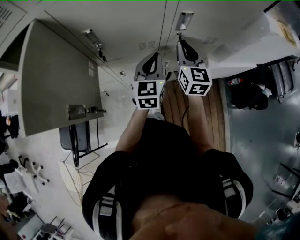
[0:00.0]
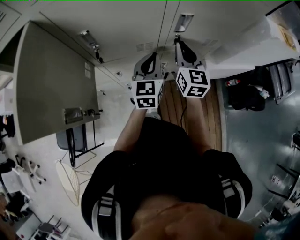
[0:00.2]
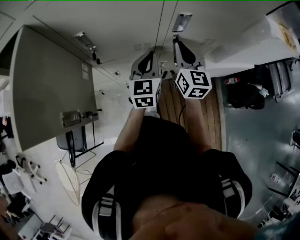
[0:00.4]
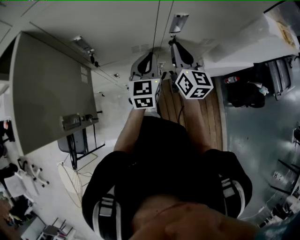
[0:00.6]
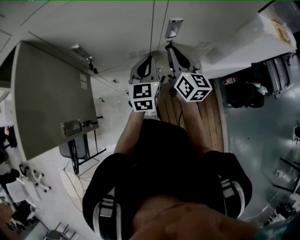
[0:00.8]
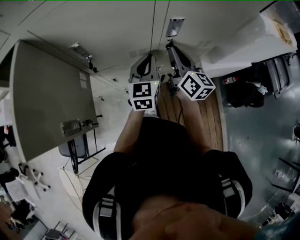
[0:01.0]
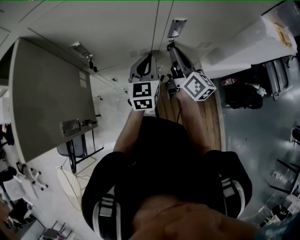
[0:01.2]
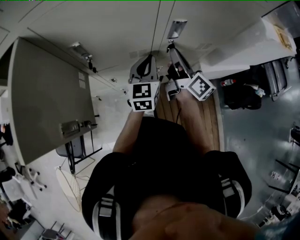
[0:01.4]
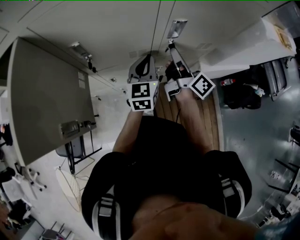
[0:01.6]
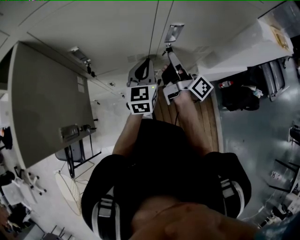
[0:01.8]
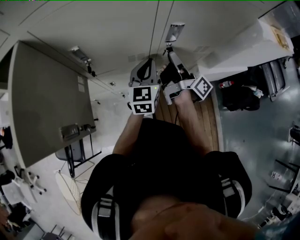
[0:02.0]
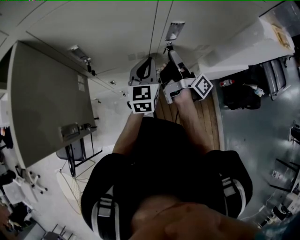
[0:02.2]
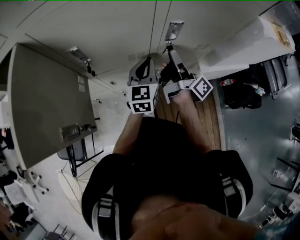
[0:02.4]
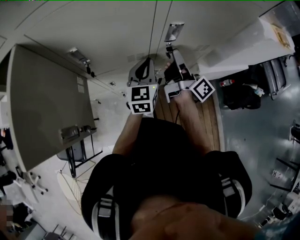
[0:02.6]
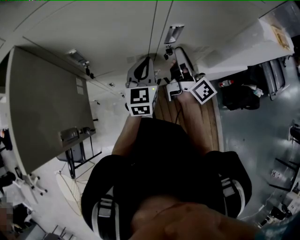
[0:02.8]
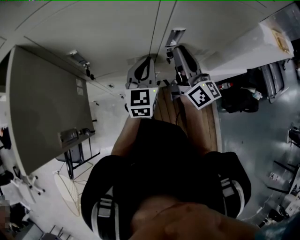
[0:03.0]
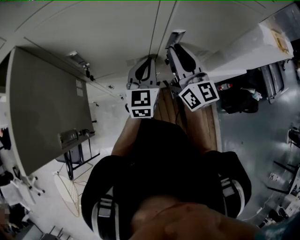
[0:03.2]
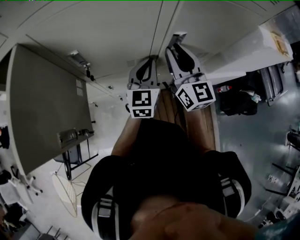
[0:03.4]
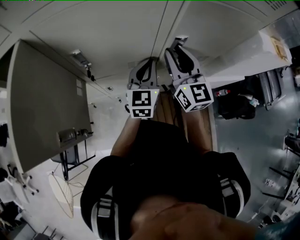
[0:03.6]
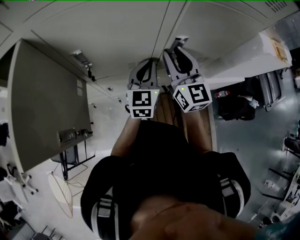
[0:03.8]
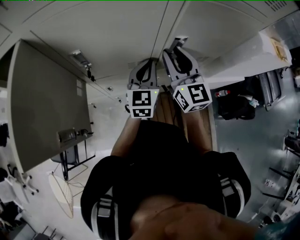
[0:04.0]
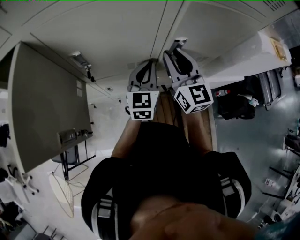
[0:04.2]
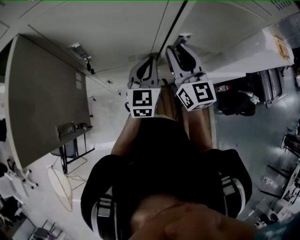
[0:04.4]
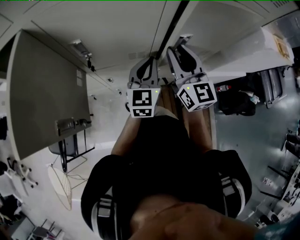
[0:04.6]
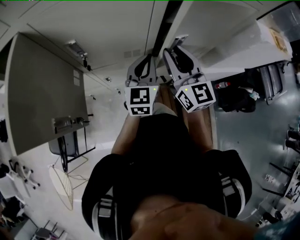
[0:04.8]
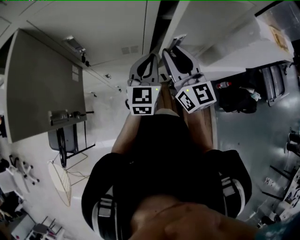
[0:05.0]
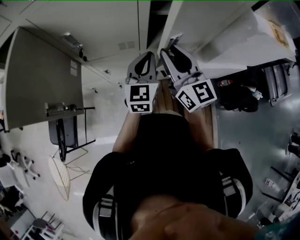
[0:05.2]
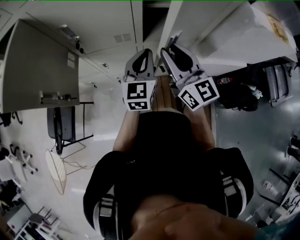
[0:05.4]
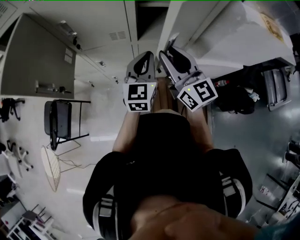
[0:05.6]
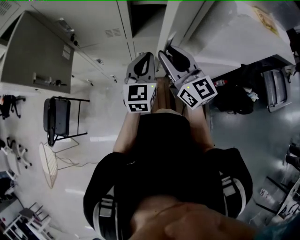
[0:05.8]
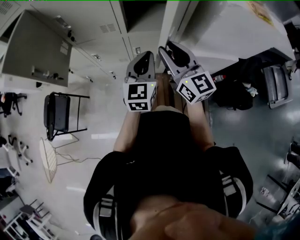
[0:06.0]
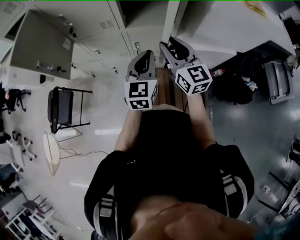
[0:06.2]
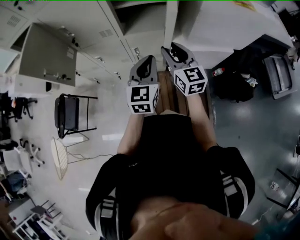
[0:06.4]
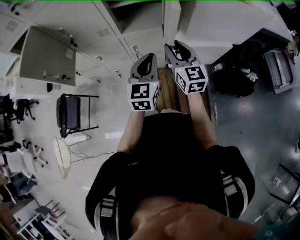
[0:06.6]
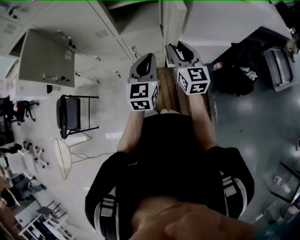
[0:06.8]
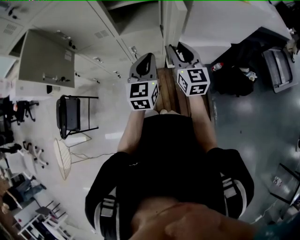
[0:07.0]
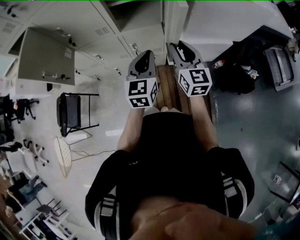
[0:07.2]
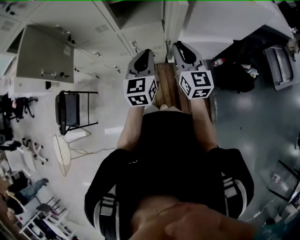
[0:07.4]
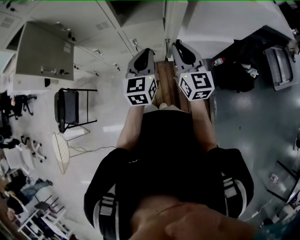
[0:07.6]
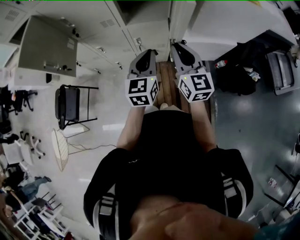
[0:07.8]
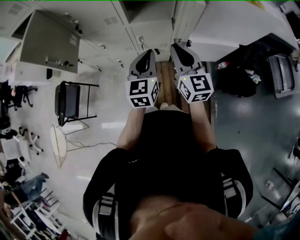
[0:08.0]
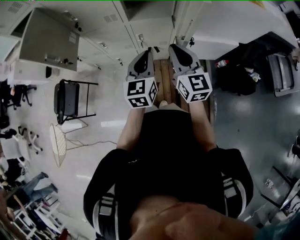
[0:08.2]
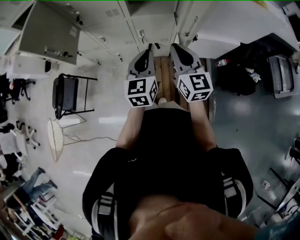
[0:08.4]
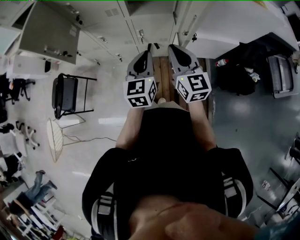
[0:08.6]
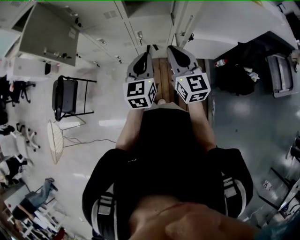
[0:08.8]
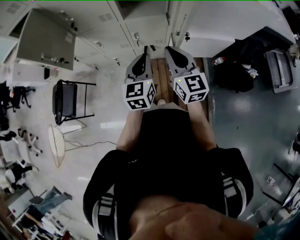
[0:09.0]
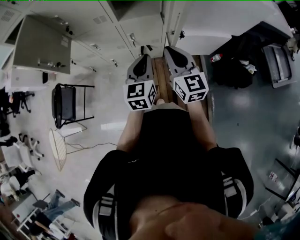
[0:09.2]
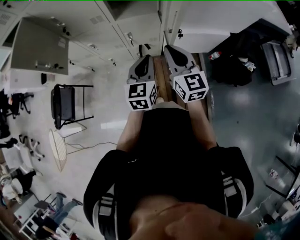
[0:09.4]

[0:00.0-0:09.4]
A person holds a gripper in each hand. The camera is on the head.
0.0 to 1.6 s: The right gripper rotates around the line of its fingers by about 60 degrees, clockwise from behind.
1.6 to 3.2 s: The right gripper shifts roughly 10 cm upward, and rolls counterclockwise, seen from behind, by about 50 degrees.
3.2 to 4.8 s: The grippers make only small movements.
4.8 to 6.2 s: Both grippers move backward and to the right, about 25 cm.
6.2 to 7.8 s: The right gripper is displaced backward by approximately 5 cm, and closes its fingers.
7.8 to 9.4 s: The left gripper changes place by about 5 cm.

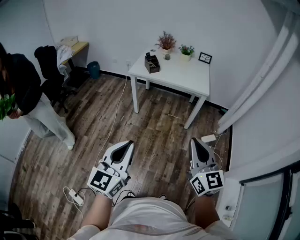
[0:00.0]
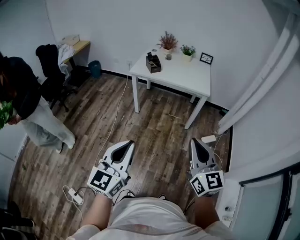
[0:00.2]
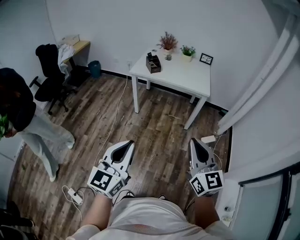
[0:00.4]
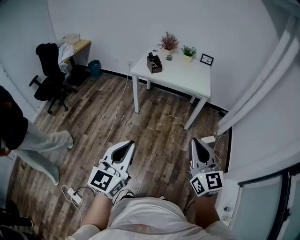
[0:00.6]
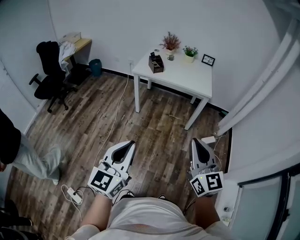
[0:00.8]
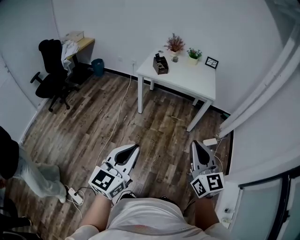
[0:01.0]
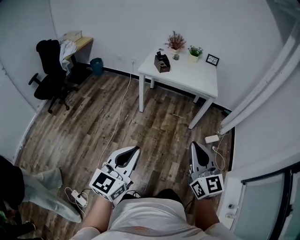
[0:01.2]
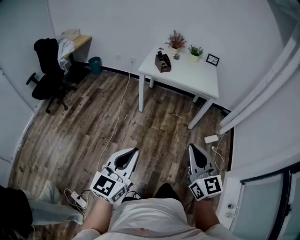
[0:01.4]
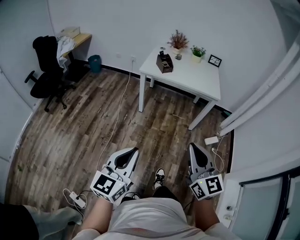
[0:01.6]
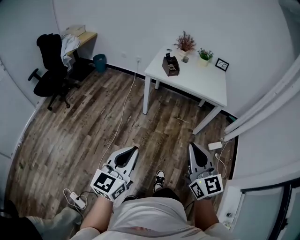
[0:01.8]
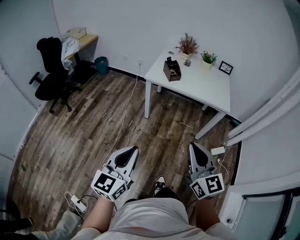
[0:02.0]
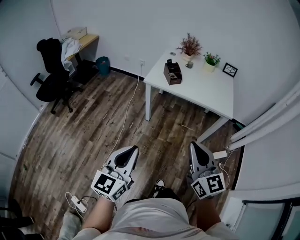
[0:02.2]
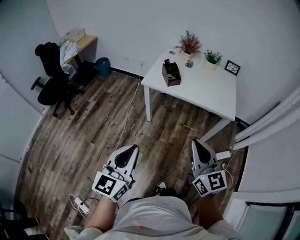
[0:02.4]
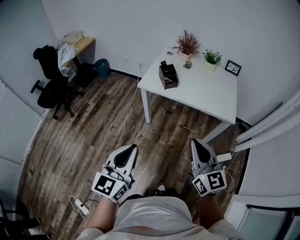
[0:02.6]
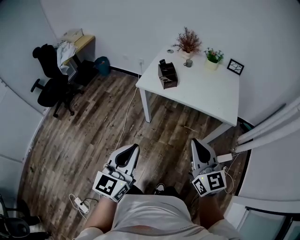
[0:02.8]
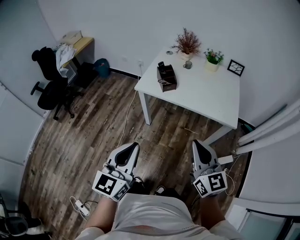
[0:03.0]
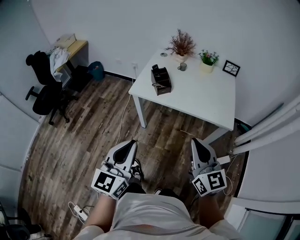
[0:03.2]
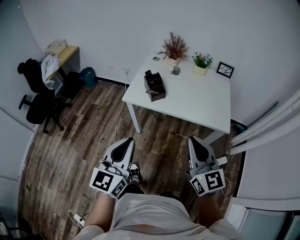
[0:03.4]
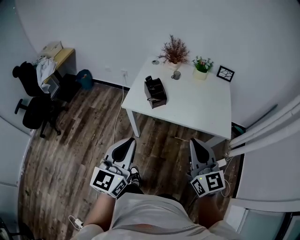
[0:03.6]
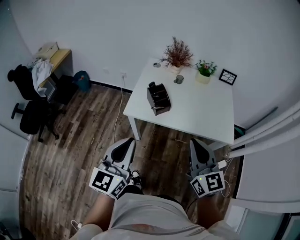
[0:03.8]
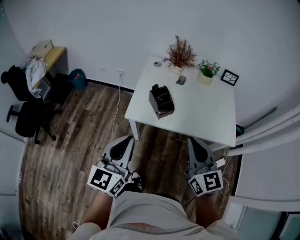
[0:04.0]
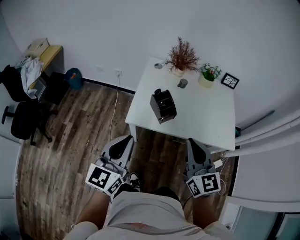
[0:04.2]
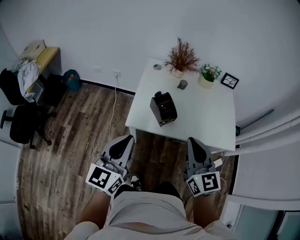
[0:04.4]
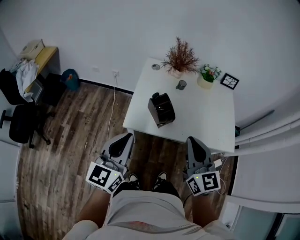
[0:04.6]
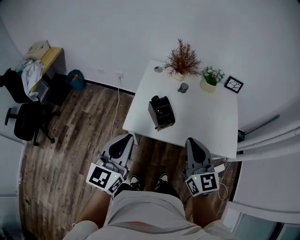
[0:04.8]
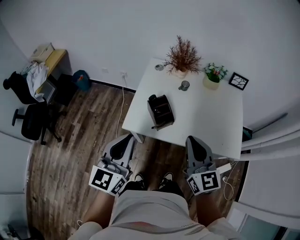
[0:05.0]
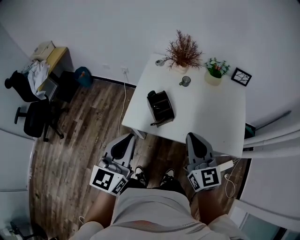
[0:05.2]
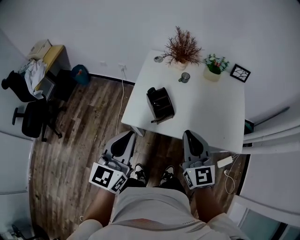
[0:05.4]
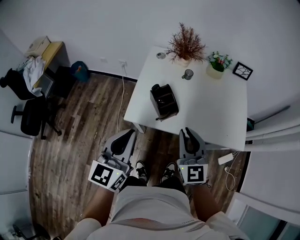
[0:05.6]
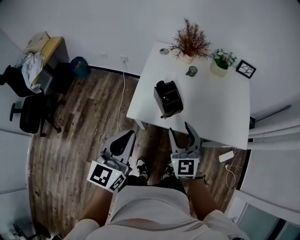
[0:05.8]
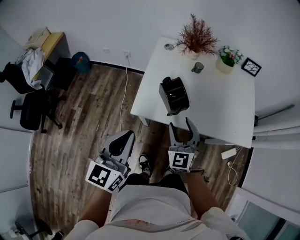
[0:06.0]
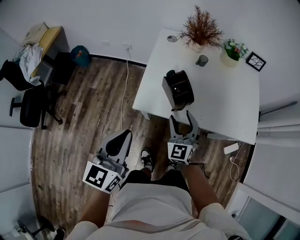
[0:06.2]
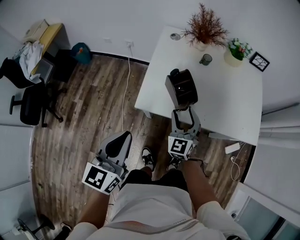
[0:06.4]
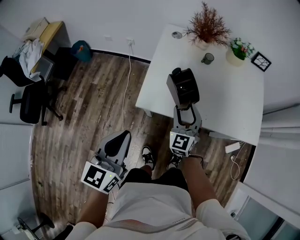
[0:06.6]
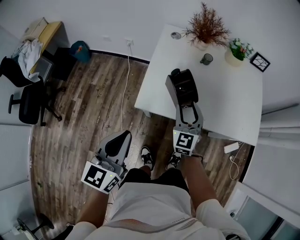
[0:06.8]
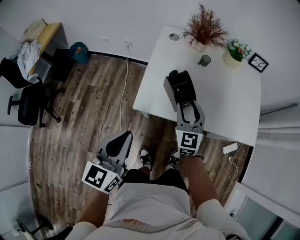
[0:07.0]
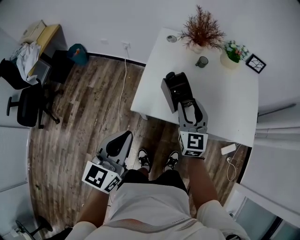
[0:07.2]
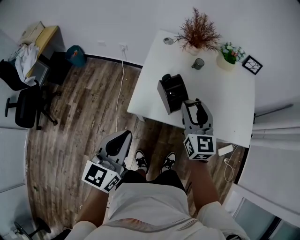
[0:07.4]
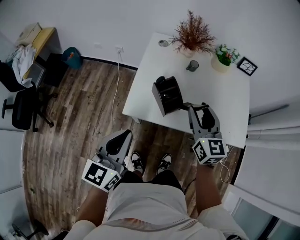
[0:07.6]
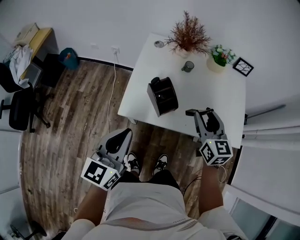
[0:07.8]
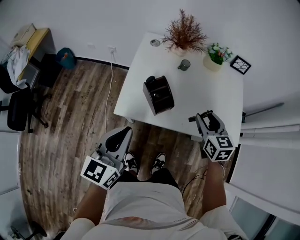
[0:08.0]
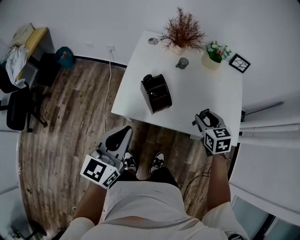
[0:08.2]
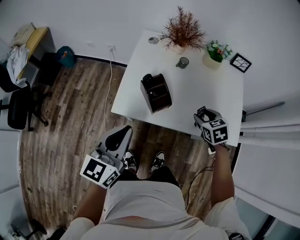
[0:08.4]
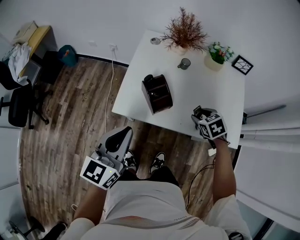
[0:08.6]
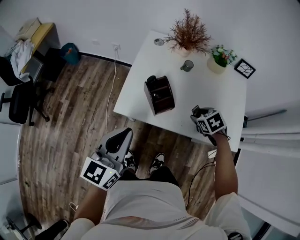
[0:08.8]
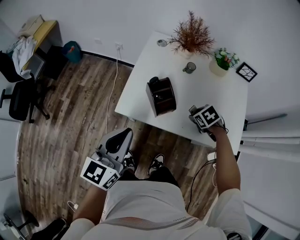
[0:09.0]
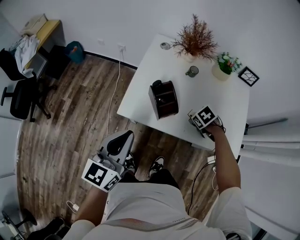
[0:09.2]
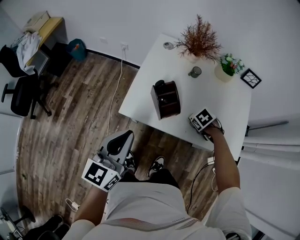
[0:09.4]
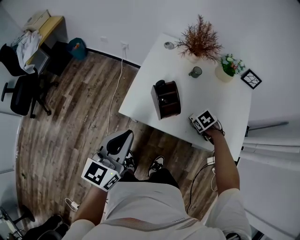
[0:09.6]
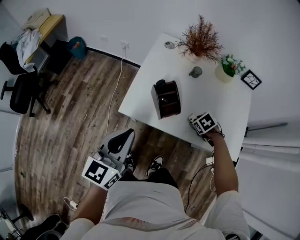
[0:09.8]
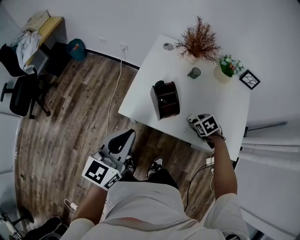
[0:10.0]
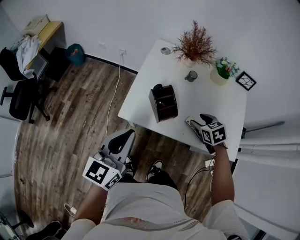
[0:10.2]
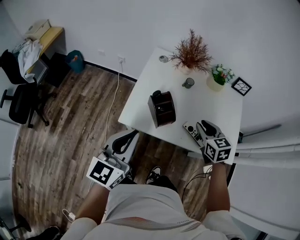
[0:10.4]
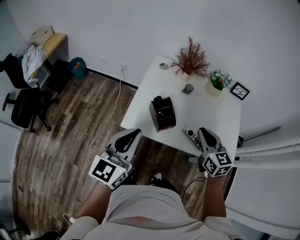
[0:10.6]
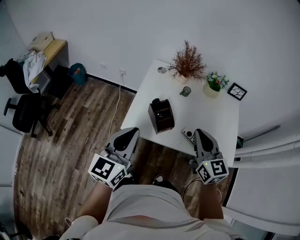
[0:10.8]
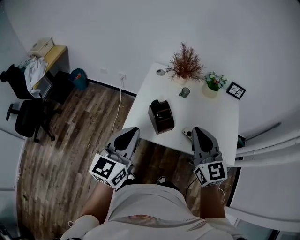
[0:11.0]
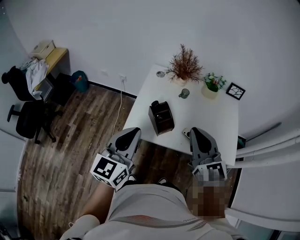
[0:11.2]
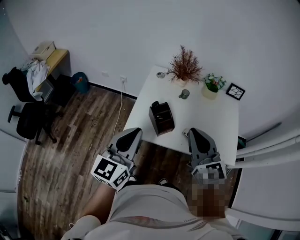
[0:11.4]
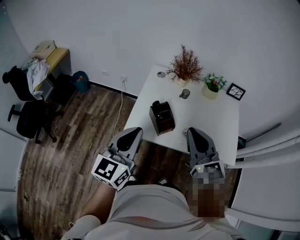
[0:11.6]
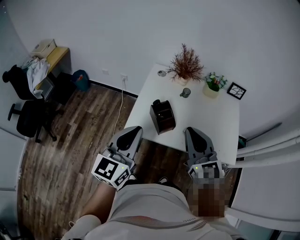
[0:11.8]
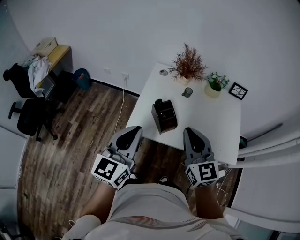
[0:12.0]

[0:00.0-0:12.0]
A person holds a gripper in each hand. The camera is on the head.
0.0 to 1.6 s: Both grippers move to the left, approximately 15 cm.
1.6 to 3.0 s: Both grippers move forward, about 30 cm.
3.0 to 4.4 s: The two grippers go some 30 cm forward and to the left.
4.4 to 6.0 s: The left gripper moves roughly 10 cm to the right and comes back, while the right gripper travels downward and forward by approximately 20 cm, rotates some 20 degrees, and opens.
6.0 to 7.6 s: The right gripper heads upward, to the right and forward, covering roughly 10 cm, and swivels approximately 30 degrees.
7.6 to 9.0 s: The right gripper heads downward, covering approximately 20 cm, and tilts its fingers some 70 degrees downward.
9.0 to 10.4 s: The right gripper travels upward by roughly 15 cm, angles its fingers upward, by roughly 40 degrees, and closes up.
10.4 to 12.0 s: The left gripper shifts some 5 cm upward, while the right gripper shifts about 20 cm upward, to the left and backward, tilts its fingers roughly 30 degrees upward, and closes.

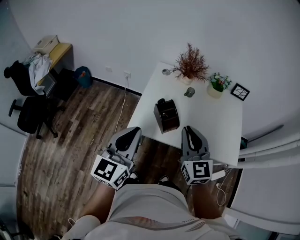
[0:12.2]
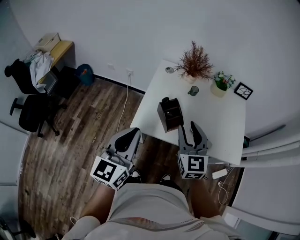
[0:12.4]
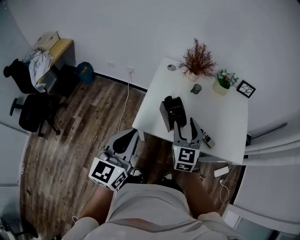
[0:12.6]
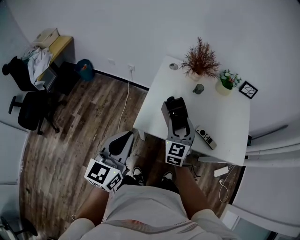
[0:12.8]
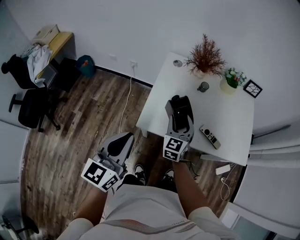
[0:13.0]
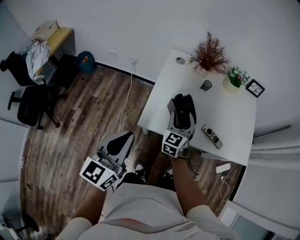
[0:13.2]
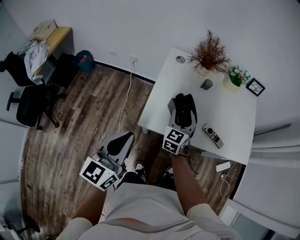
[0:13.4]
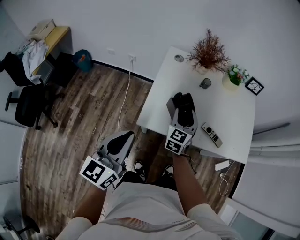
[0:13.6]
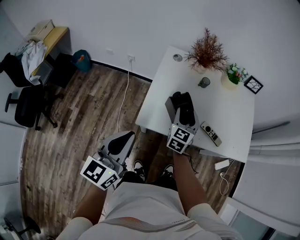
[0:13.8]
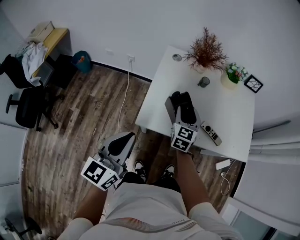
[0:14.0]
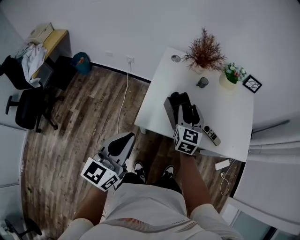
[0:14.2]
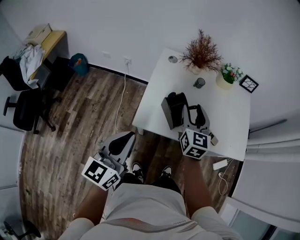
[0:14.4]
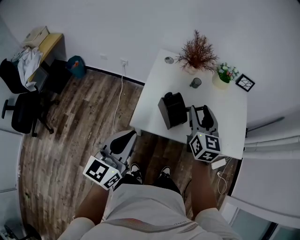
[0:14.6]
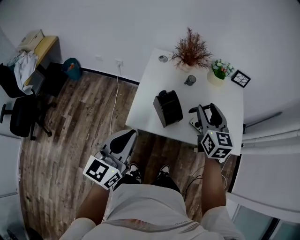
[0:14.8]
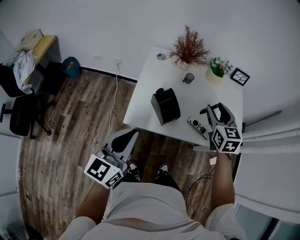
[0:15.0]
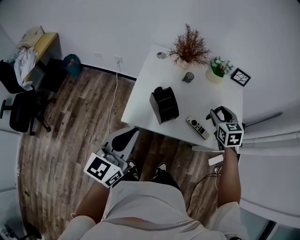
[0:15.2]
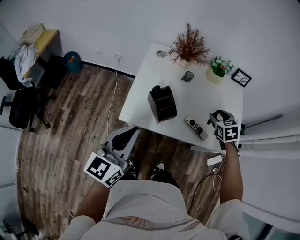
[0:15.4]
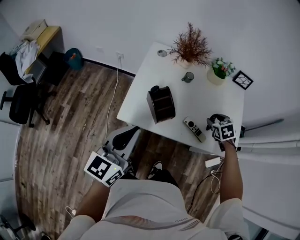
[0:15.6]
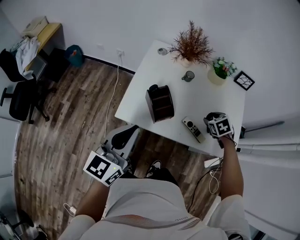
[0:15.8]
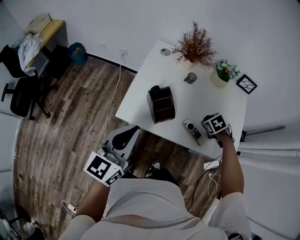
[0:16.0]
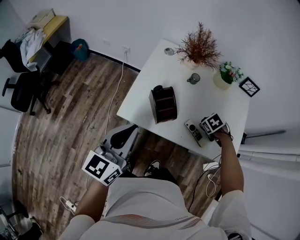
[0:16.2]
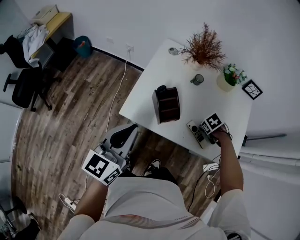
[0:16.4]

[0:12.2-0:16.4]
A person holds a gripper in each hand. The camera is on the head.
12.2 to 13.6 s: The left gripper travels to the left and downward by about 10 cm. Meanwhile the right gripper is displaced downward, forward and to the left by roughly 20 cm, turns by roughly 30 degrees, and opens up.
13.6 to 15.0 s: The left gripper moves to the right, approximately 5 cm. The right gripper travels to the right and upward by roughly 20 cm.
15.0 to 16.4 s: The right gripper is displaced downward by about 25 cm, and angles its fingers downward, by approximately 60 degrees.
